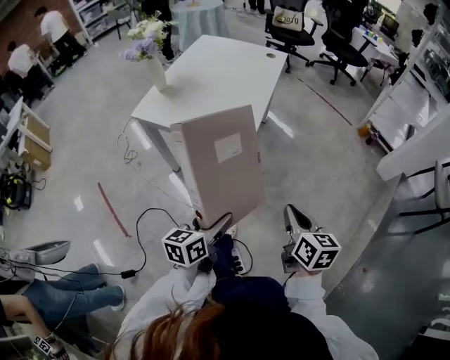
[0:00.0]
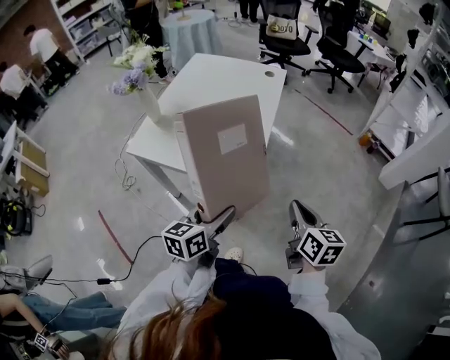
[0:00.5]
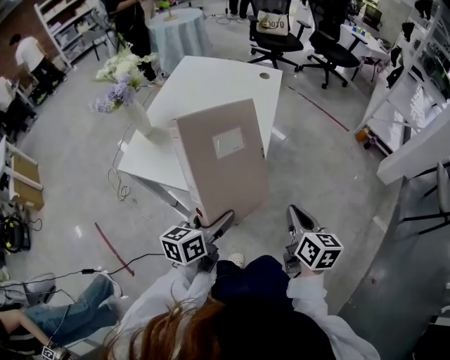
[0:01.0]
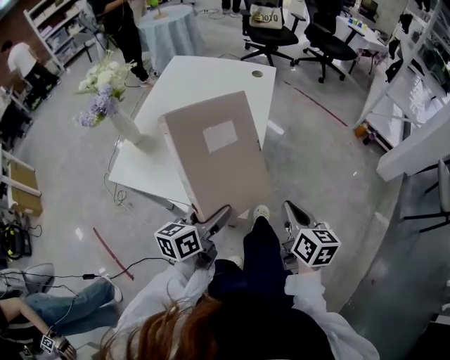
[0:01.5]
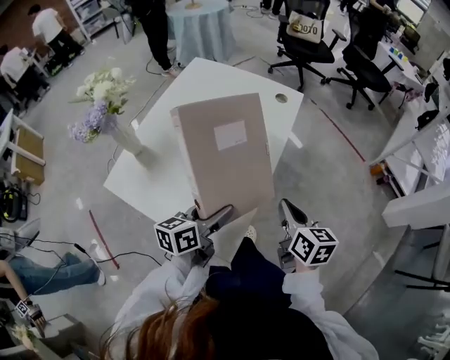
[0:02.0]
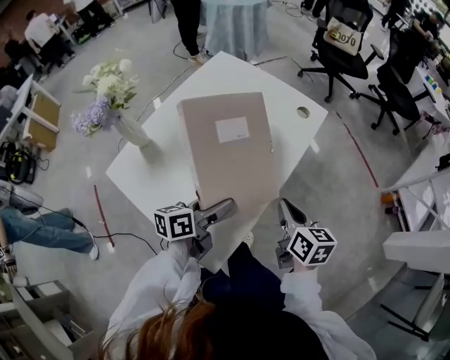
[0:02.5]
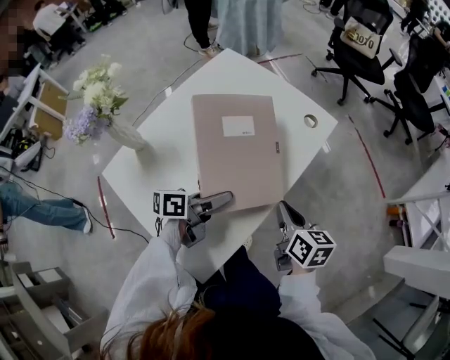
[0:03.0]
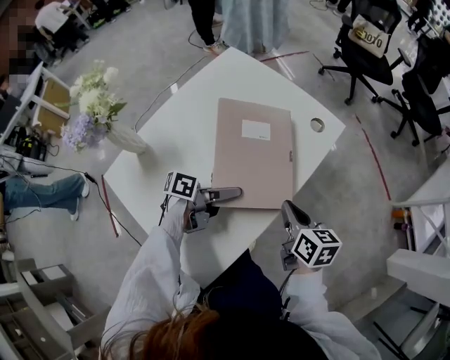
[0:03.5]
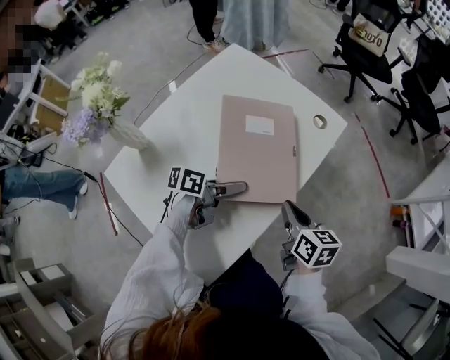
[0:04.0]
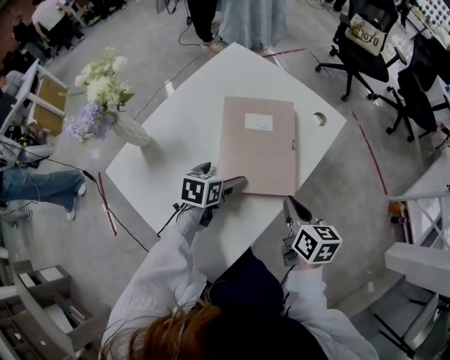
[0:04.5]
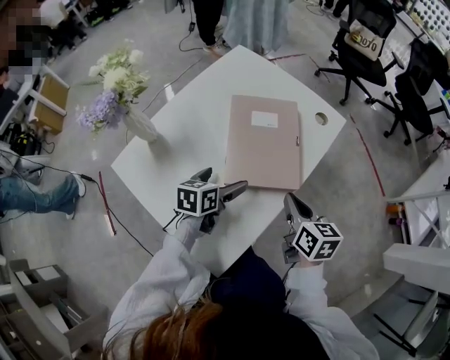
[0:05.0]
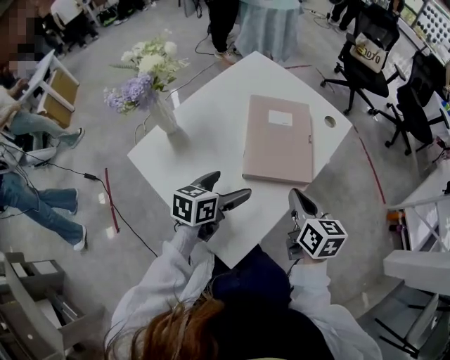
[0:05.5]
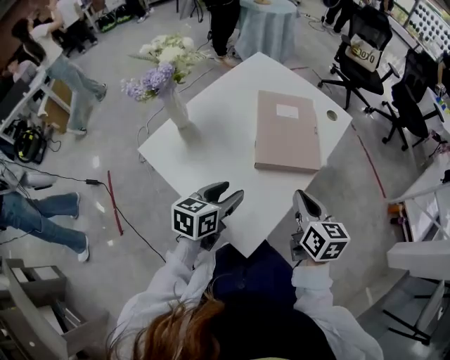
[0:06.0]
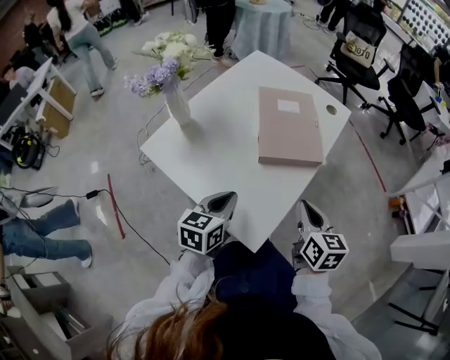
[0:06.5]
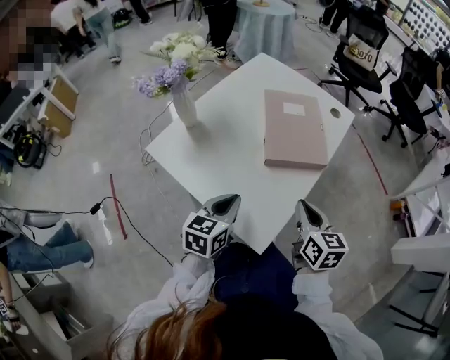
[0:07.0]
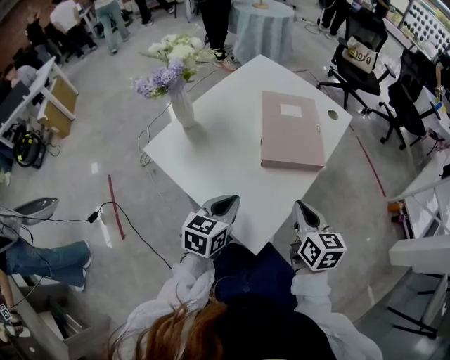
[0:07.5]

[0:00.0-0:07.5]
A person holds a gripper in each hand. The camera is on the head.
0:00.0 to 0:02.0: The pair of grippers is taken forward, some 50 cm.
0:02.0 to 0:04.0: The left gripper moves forward and downward, approximately 20 cm, and swivels some 30 degrees, while the right gripper goes roughly 15 cm forward.
0:04.0 to 0:05.5: The left gripper moves backward, to the left and upward, some 15 cm, and turns by about 40 degrees; the right gripper goes roughly 10 cm upward, backward and to the left.
0:05.5 to 0:07.5: The grippers both shift backward by about 10 cm. The left gripper closes its fingers.

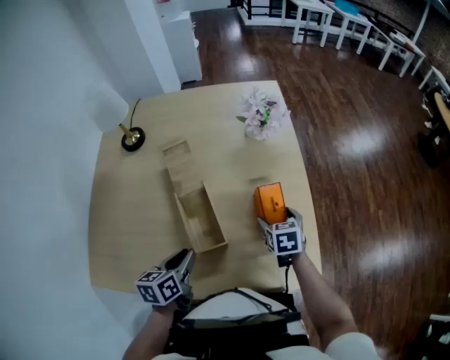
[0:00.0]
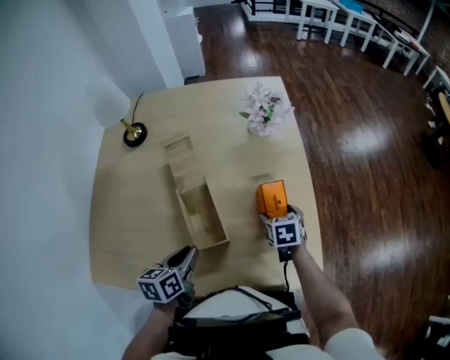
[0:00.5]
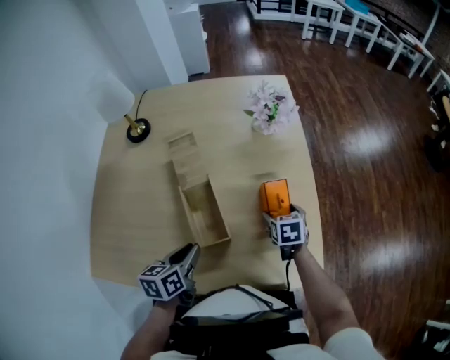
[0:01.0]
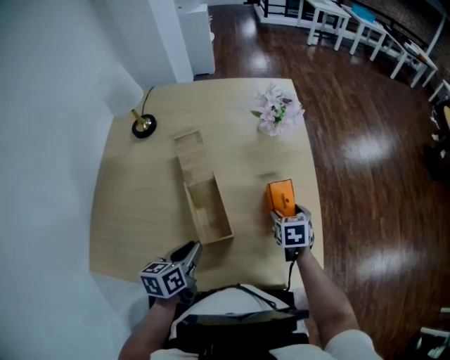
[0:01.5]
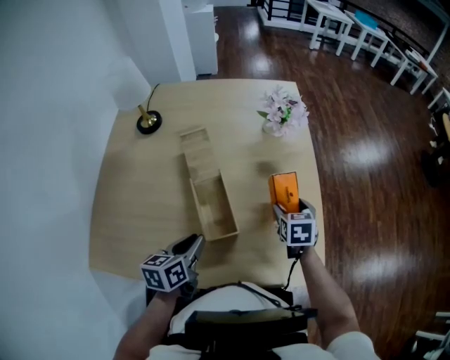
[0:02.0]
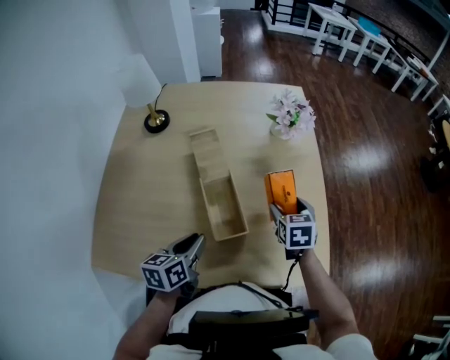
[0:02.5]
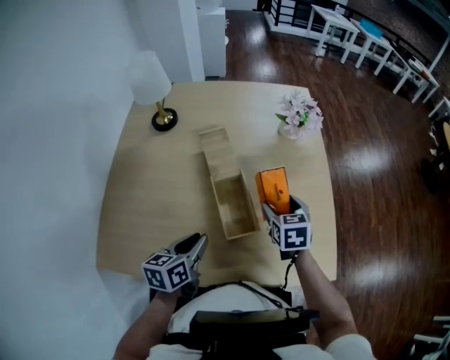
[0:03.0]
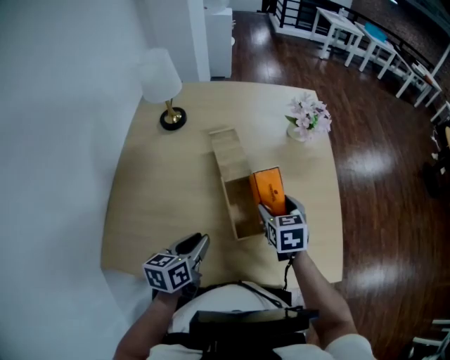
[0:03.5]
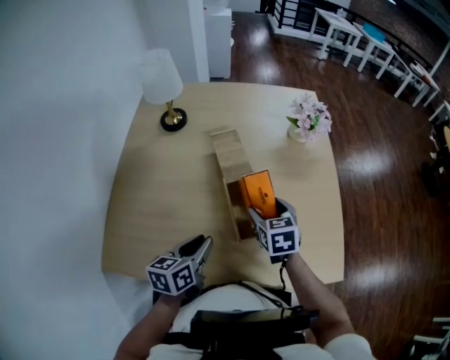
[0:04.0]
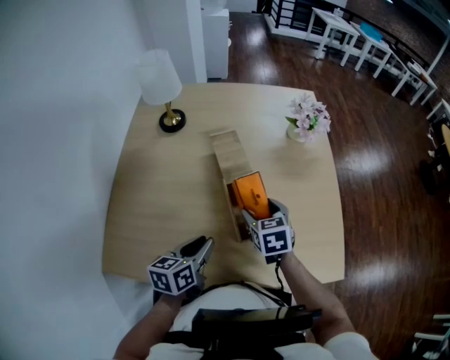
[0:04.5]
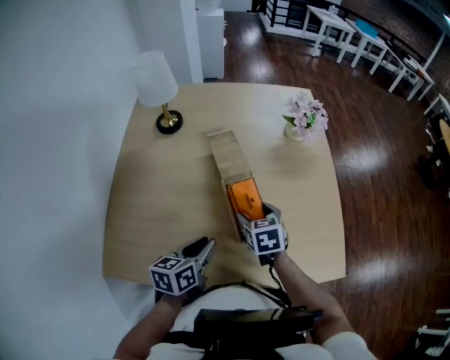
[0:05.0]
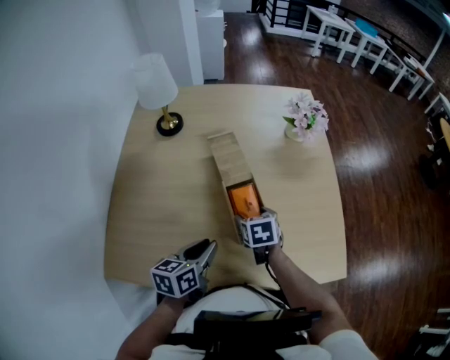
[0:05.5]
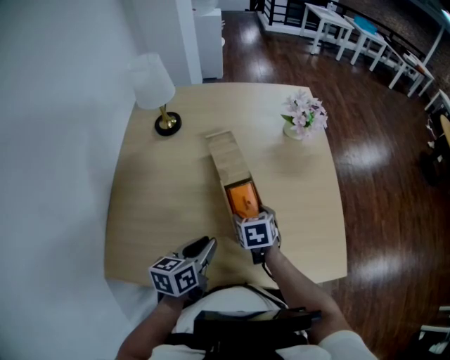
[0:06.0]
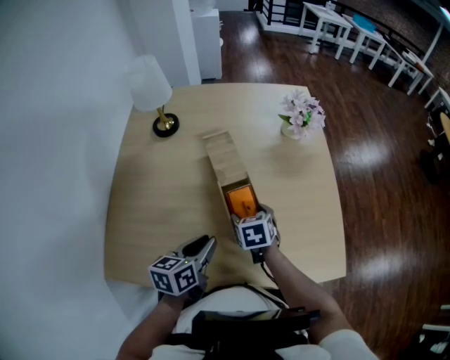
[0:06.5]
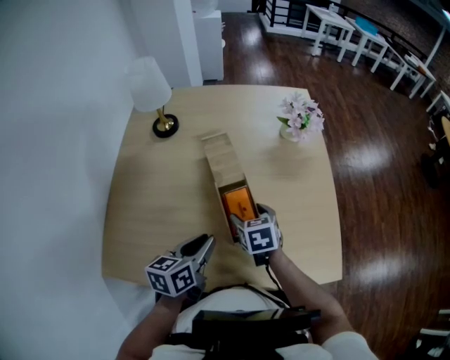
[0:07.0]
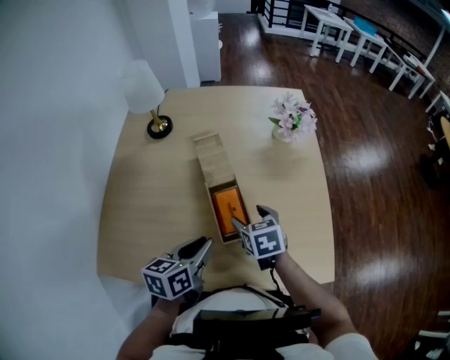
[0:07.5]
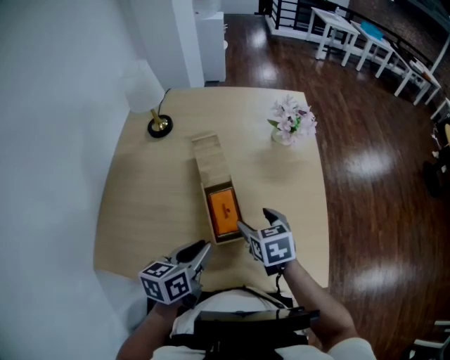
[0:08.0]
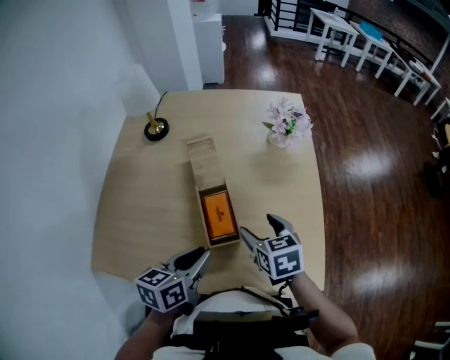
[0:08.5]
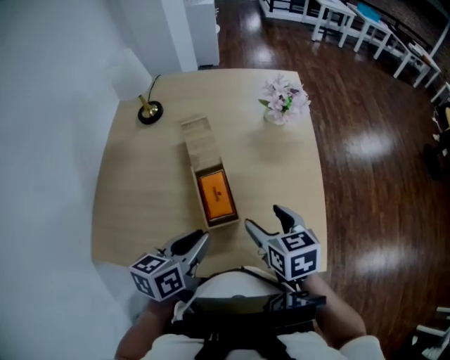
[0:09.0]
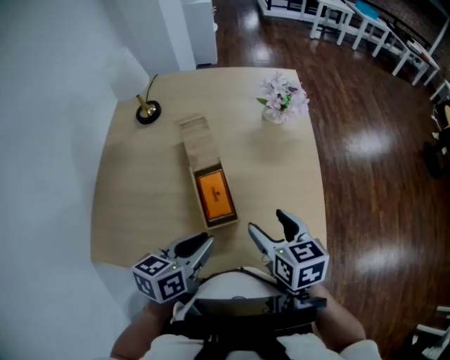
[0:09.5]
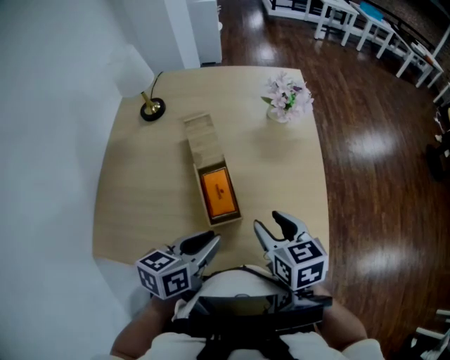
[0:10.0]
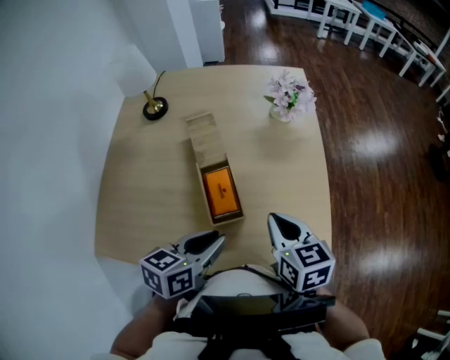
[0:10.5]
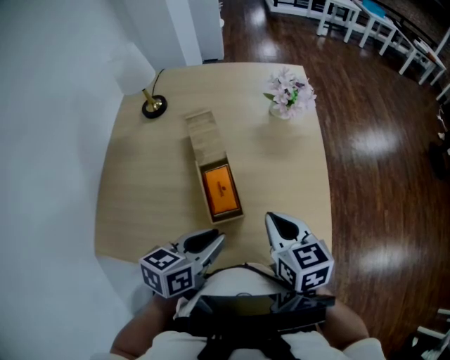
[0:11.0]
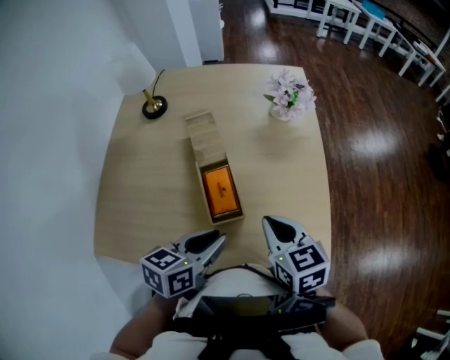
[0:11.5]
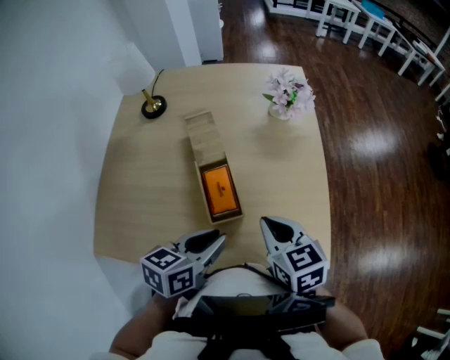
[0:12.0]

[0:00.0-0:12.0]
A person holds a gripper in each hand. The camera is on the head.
0:00.0 to 0:02.0: The grippers make only small movements.
0:02.0 to 0:04.0: The left gripper goes roughly 10 cm to the left, while the right gripper is displaced to the left by approximately 20 cm.
0:04.0 to 0:06.0: The right gripper travels downward by about 5 cm.
0:06.0 to 0:08.0: The left gripper shifts some 5 cm to the right. Meanwhile the right gripper goes approximately 10 cm to the right and upward.
0:08.0 to 0:10.0: The left gripper heads to the right, covering approximately 5 cm. The right gripper travels backward, upward and to the right by about 10 cm.
0:10.0 to 0:12.0: The right gripper closes its fingers.

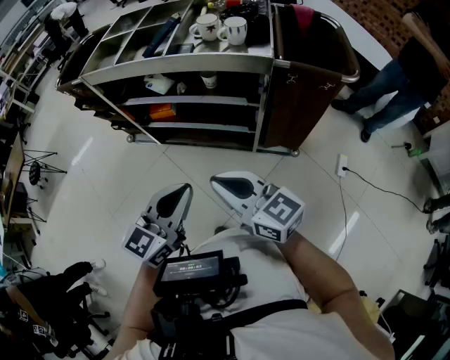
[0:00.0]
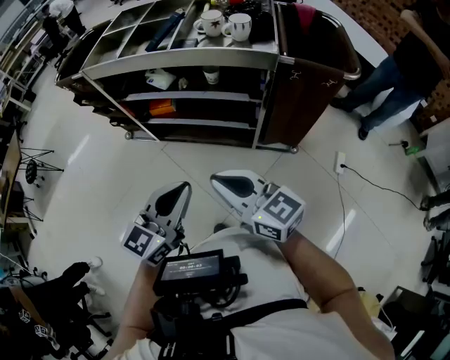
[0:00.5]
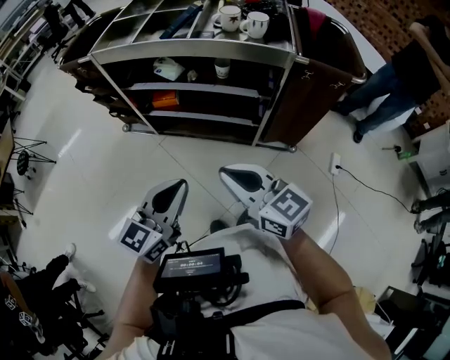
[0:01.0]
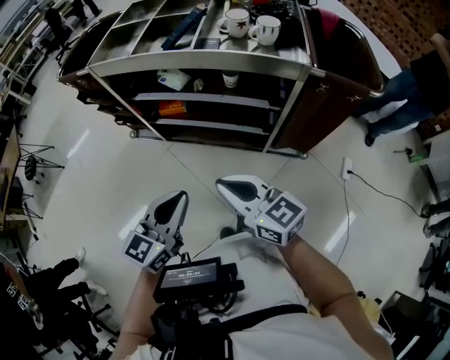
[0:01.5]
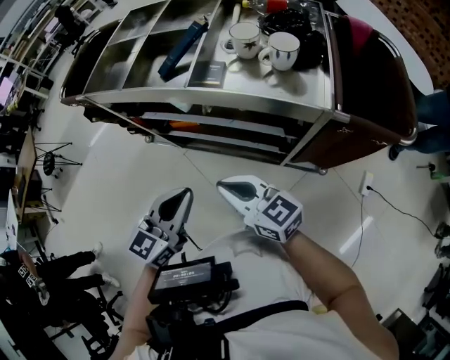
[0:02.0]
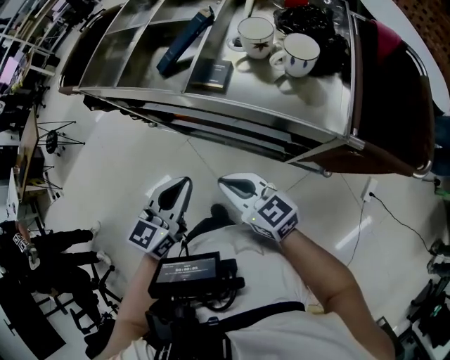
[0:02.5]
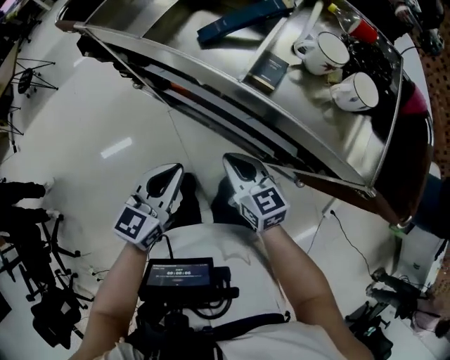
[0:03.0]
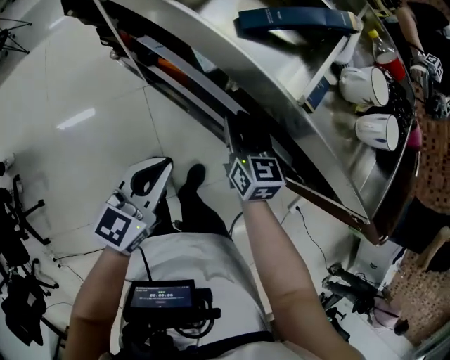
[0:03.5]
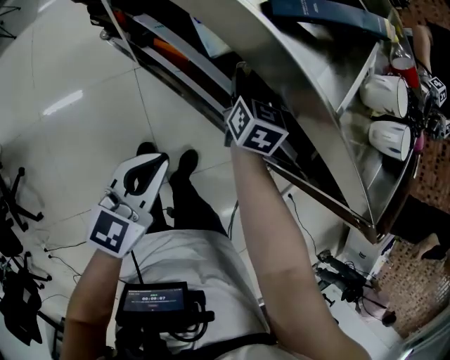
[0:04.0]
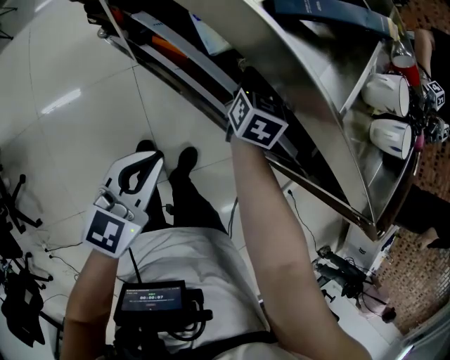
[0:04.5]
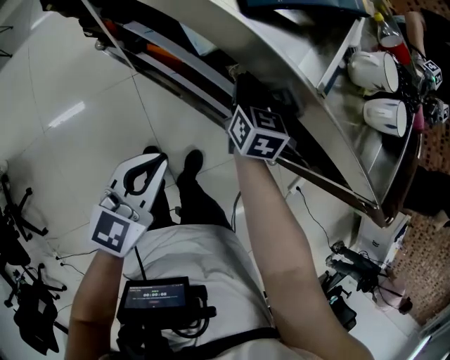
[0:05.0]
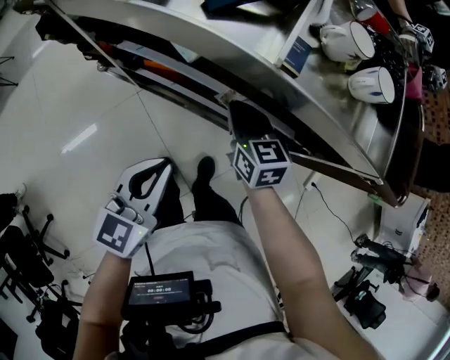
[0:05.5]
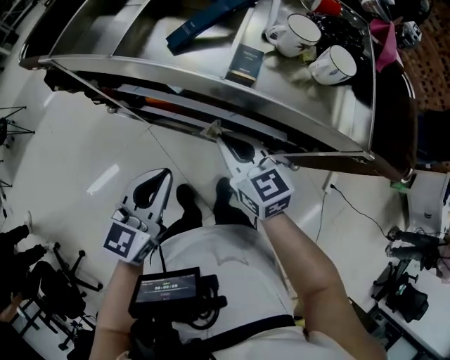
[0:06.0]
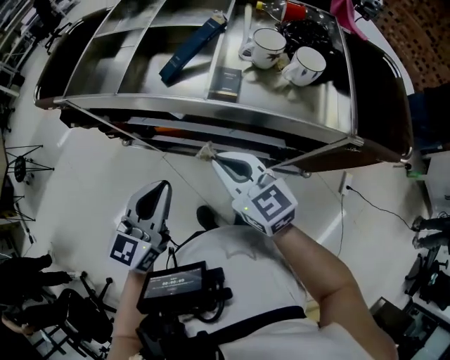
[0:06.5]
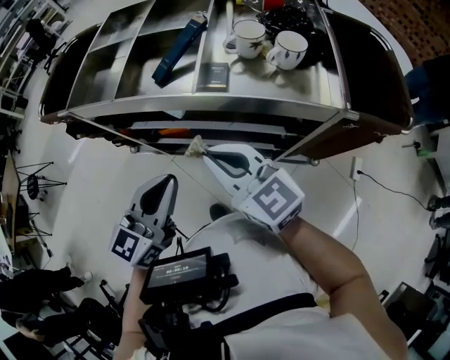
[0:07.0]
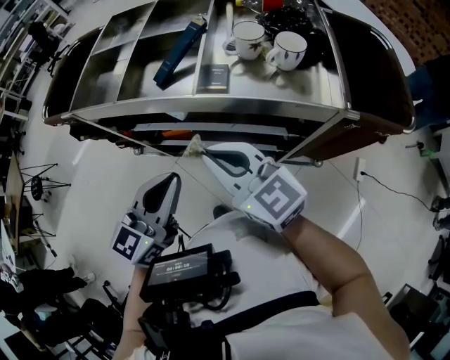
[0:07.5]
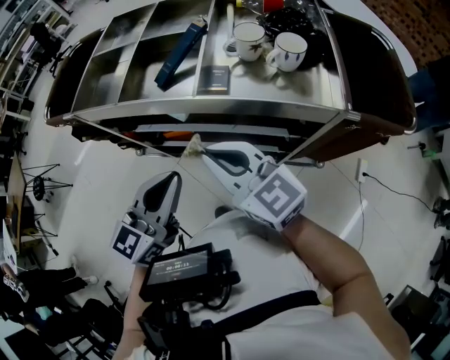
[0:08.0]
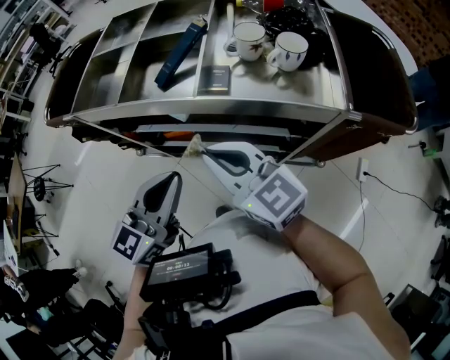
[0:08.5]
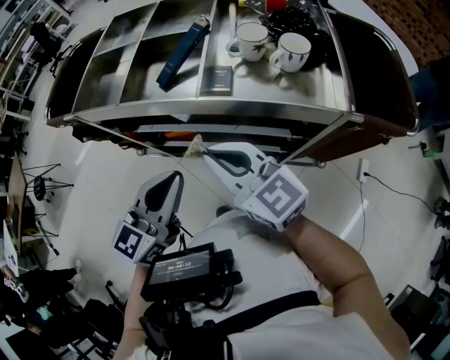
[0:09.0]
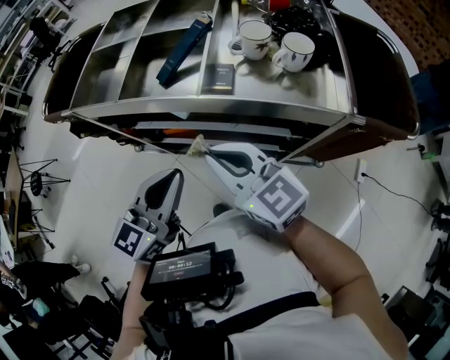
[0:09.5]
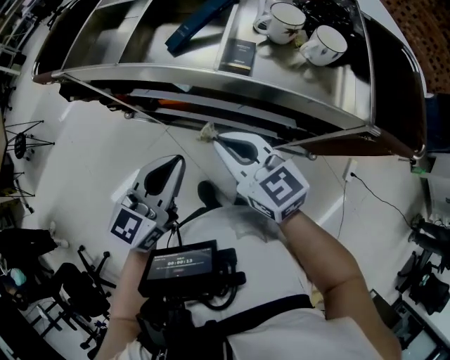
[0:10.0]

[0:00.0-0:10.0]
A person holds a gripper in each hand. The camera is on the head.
0:00.0 to 0:02.0: Both grippers move forward, roughly 20 cm.
0:02.0 to 0:04.0: The right gripper shifts about 35 cm forward and downward, turns by roughly 40 degrees, and opens, while the left gripper travels downward, forward and to the left by roughly 20 cm, and swivels some 20 degrees.
0:04.0 to 0:06.0: The right gripper goes roughly 20 cm backward and upward, changes its angle by roughly 20 degrees, and closes its fingers. The left gripper goes roughly 10 cm upward.
0:06.0 to 0:08.0: The right gripper heads upward, covering approximately 15 cm. Meanwhile the left gripper shifts roughly 10 cm upward.
0:08.0 to 0:10.0: The left gripper shifts by about 5 cm. Meanwhile the right gripper moves downward, roughly 5 cm.
